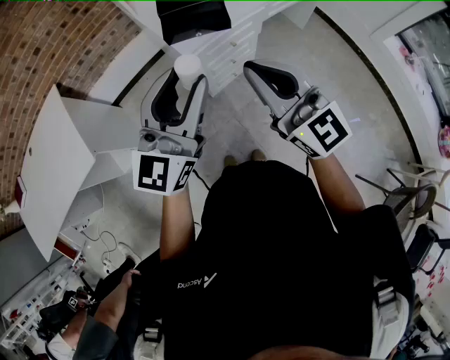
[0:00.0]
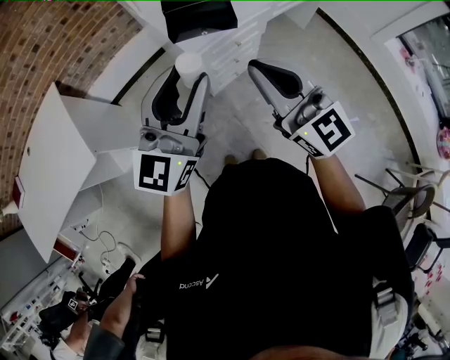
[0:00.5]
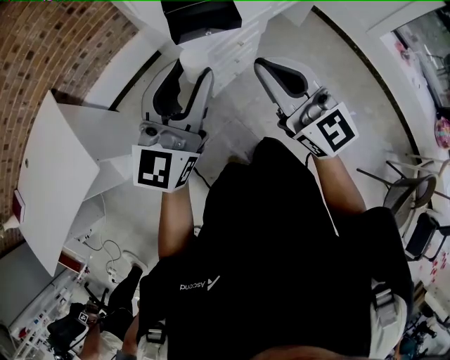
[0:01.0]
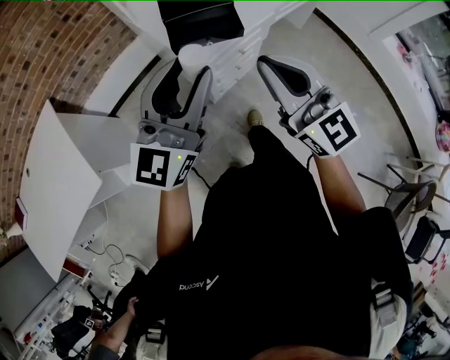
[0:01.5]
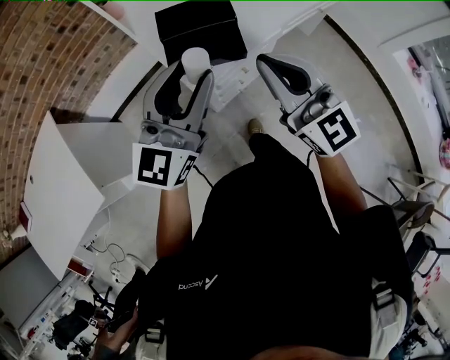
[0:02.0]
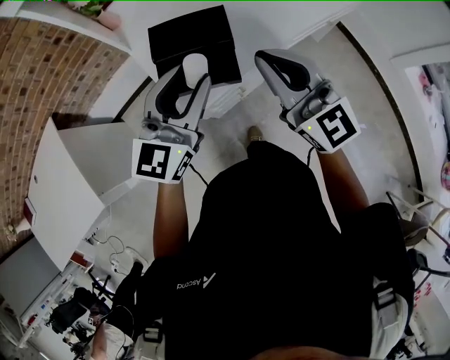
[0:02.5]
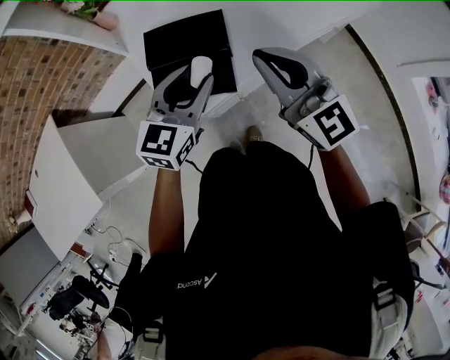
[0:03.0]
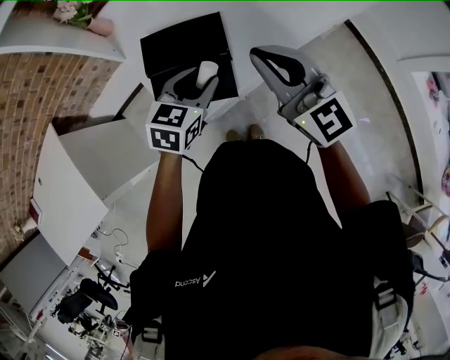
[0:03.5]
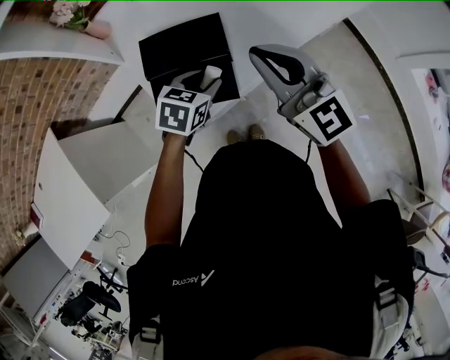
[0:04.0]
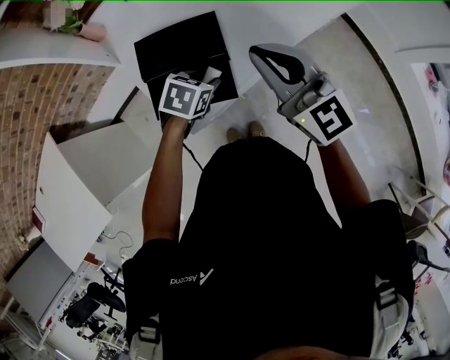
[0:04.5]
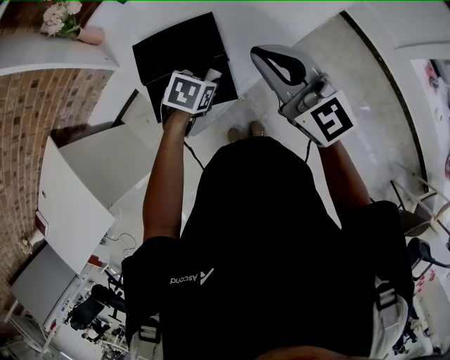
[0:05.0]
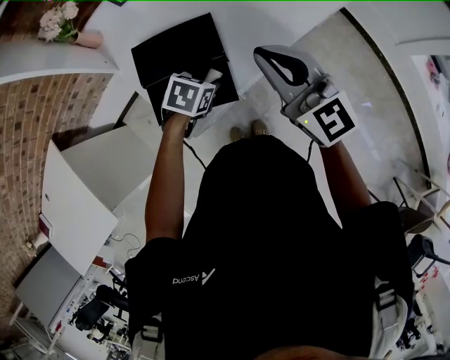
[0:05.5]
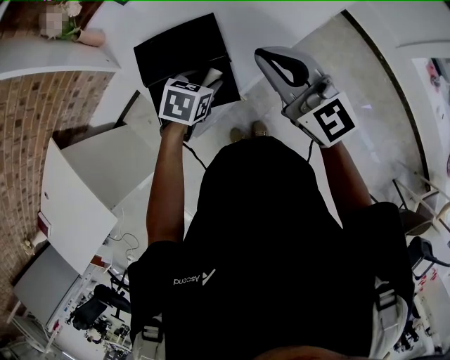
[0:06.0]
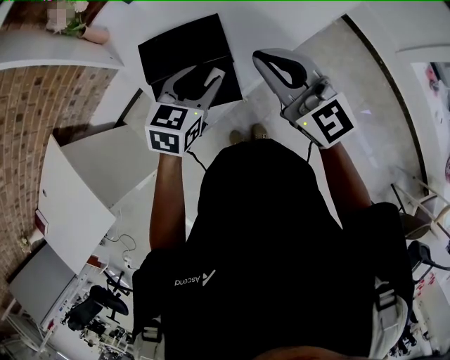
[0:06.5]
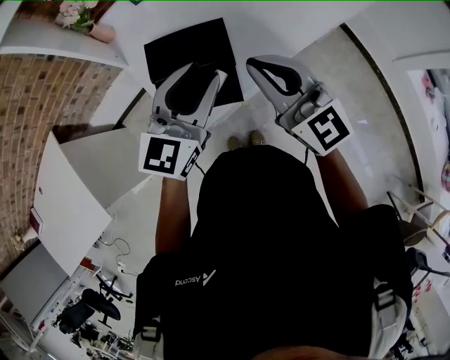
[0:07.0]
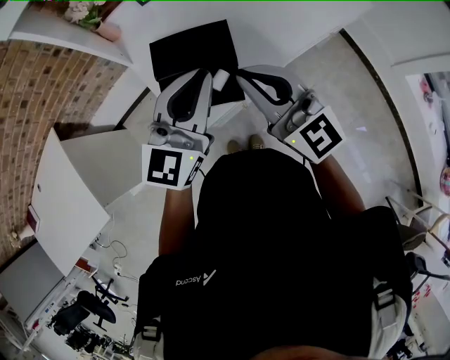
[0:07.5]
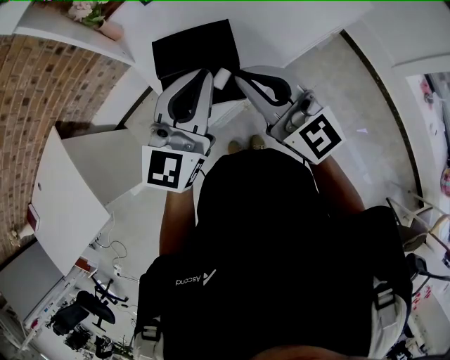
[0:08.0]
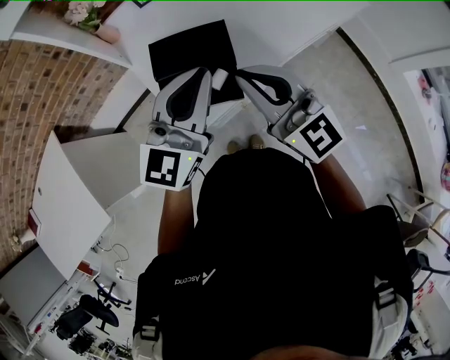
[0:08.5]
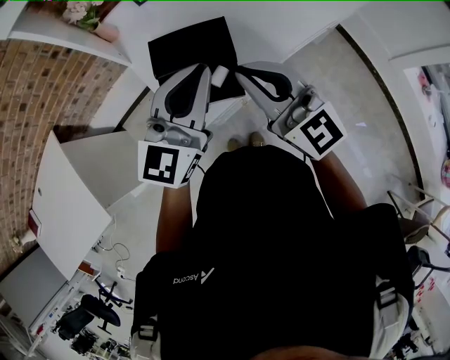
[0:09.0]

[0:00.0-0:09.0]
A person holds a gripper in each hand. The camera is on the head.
0:00.0 to 0:02.0: The grippers both shift forward by about 20 cm.
0:02.0 to 0:04.5: The left gripper travels downward and forward by about 35 cm, and angles its fingers downward, by about 70 degrees. Meanwhile the right gripper is displaced forward by approximately 20 cm.
0:04.5 to 0:07.0: The left gripper shifts approximately 25 cm upward, and tilts its fingers approximately 50 degrees upward.
0:07.0 to 0:09.0: The right gripper changes place by some 5 cm. Meanwhile the left gripper heads upward, covering roughly 5 cm, and closes up.

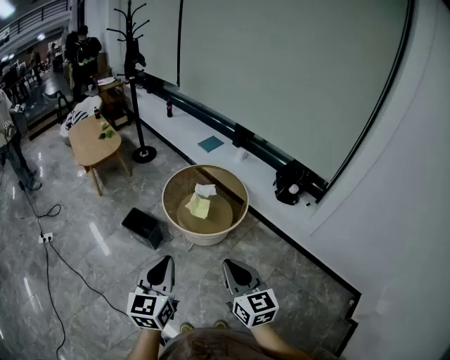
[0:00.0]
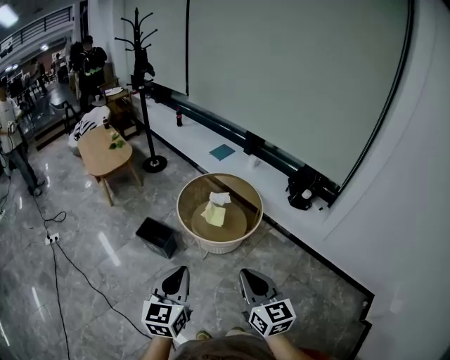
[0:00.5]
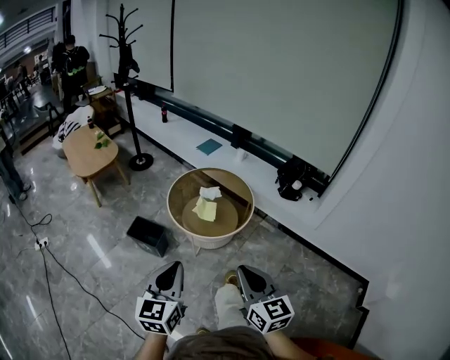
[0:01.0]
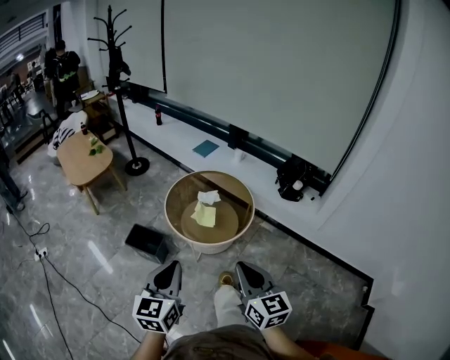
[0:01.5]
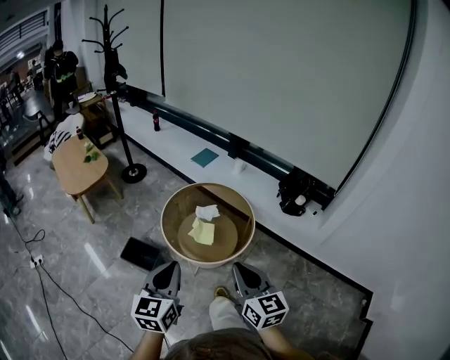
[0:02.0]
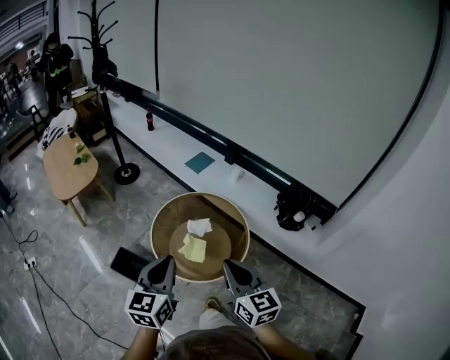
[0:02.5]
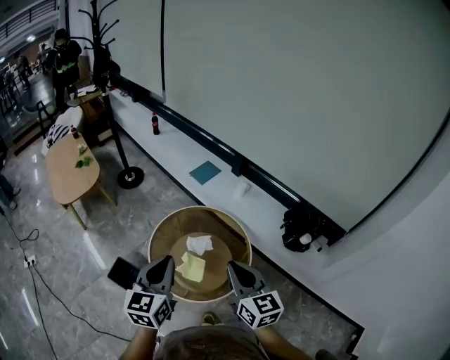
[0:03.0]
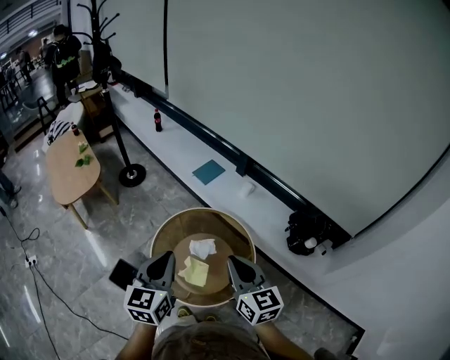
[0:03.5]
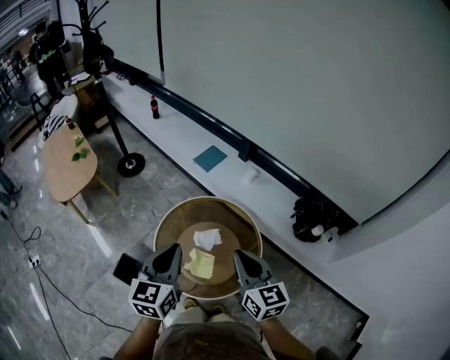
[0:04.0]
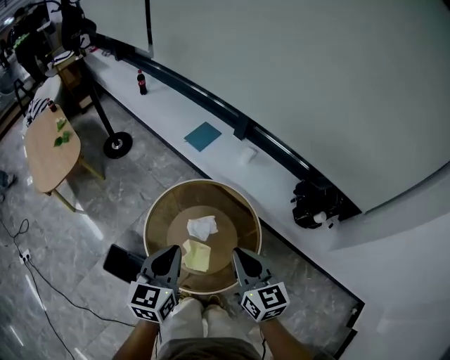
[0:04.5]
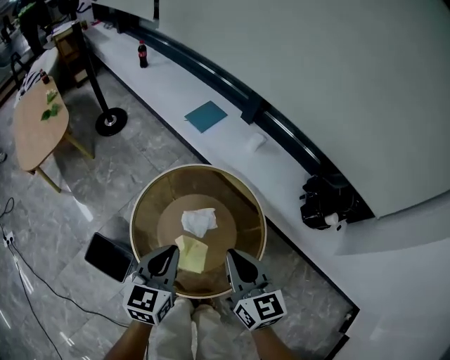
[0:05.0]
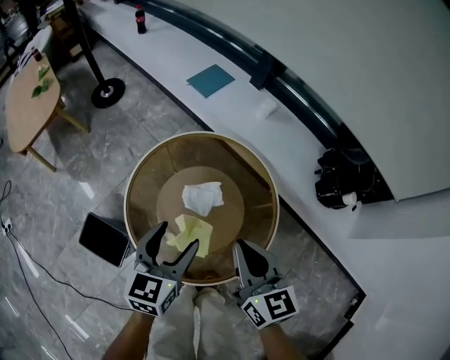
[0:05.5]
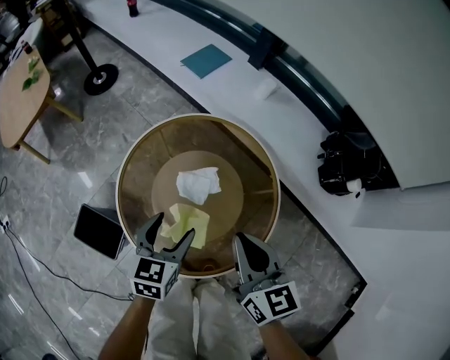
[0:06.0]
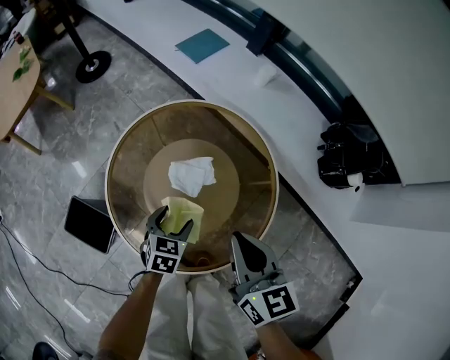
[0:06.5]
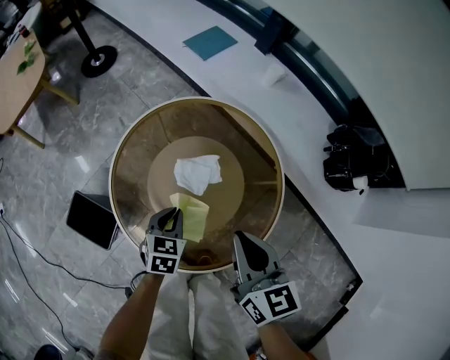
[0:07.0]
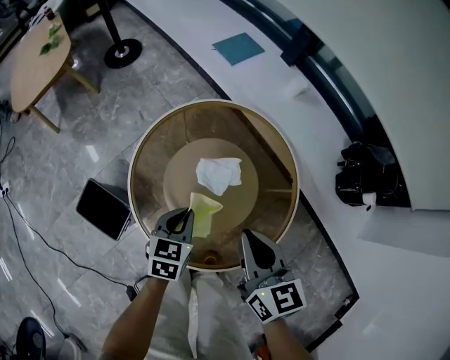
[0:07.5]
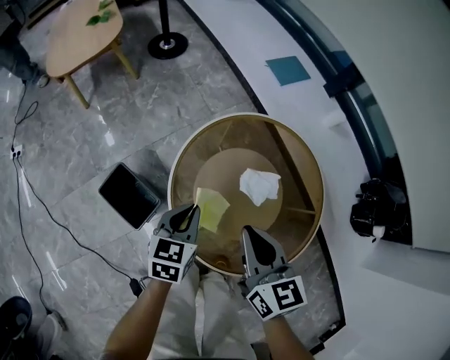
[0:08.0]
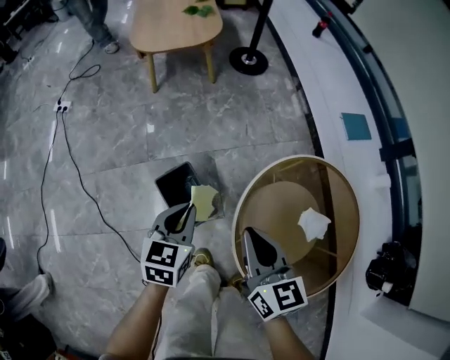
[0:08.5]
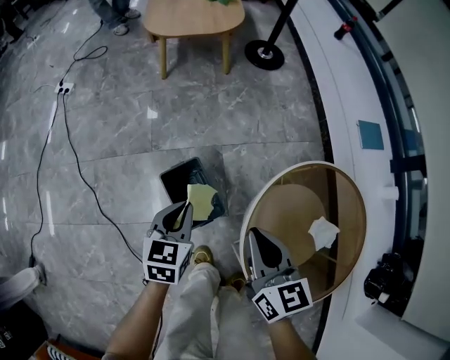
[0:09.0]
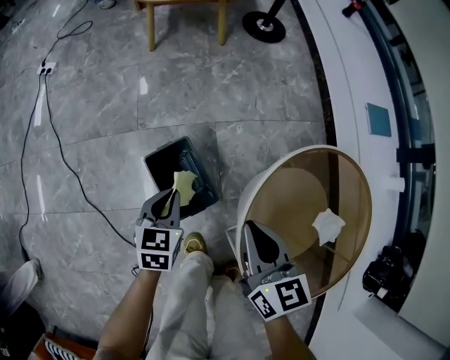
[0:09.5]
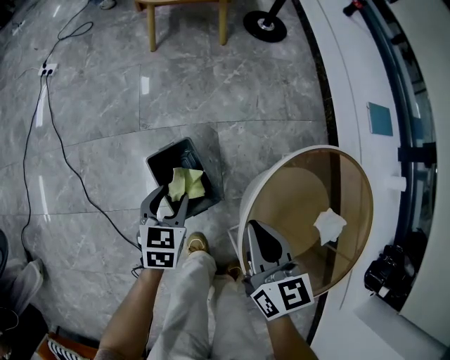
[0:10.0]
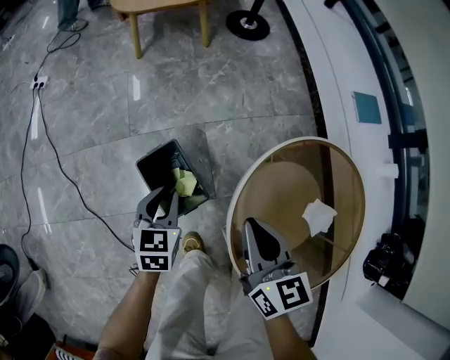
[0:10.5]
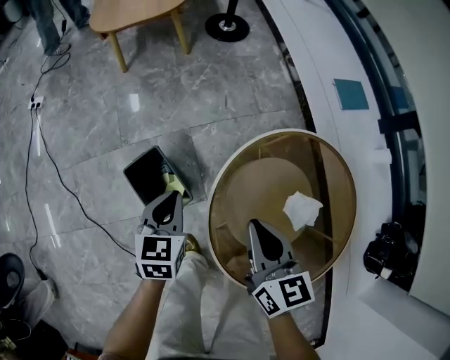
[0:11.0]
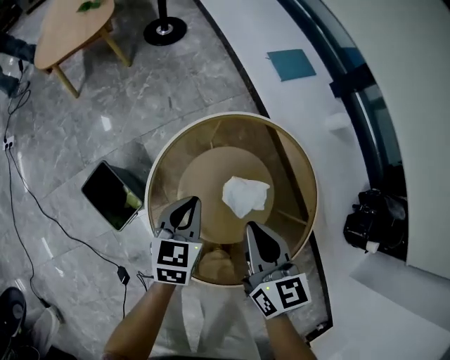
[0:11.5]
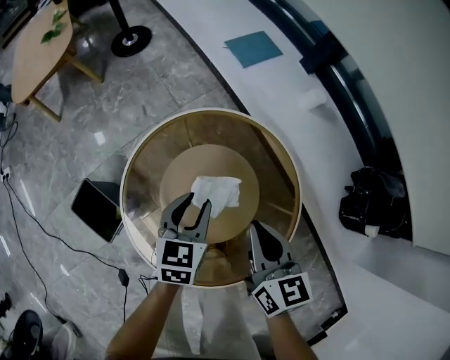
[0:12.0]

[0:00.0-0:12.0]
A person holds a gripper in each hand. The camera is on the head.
0:00.0 to 0:02.0: Both grippers travel together forward, some 15 cm.
0:02.0 to 0:04.0: The grippers both shift forward by roughly 35 cm.
0:04.0 to 0:06.0: Both grippers travel together downward, approximately 30 cm. The left gripper changes its angle by some 20 degrees, and opens up.
0:06.0 to 0:08.0: The grippers both shift to the left by about 15 cm. The left gripper closes up.
0:08.0 to 0:10.0: The left gripper changes place by about 35 cm, turns by some 30 degrees, and opens up. Meanwhile the right gripper moves about 25 cm, and changes its angle by roughly 20 degrees.
0:10.0 to 0:12.0: The two grippers travel together, roughly 40 cm. The right gripper turns by about 30 degrees. The left gripper changes its angle by approximately 30 degrees.

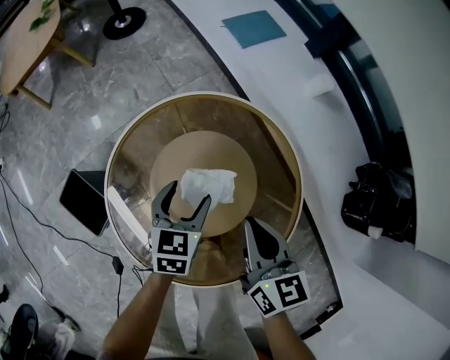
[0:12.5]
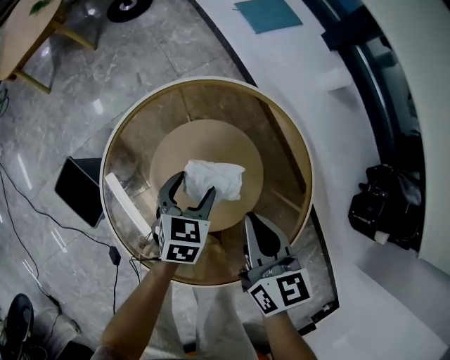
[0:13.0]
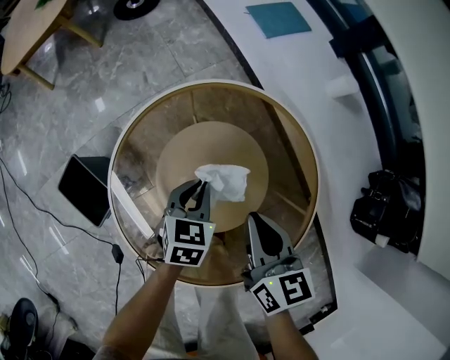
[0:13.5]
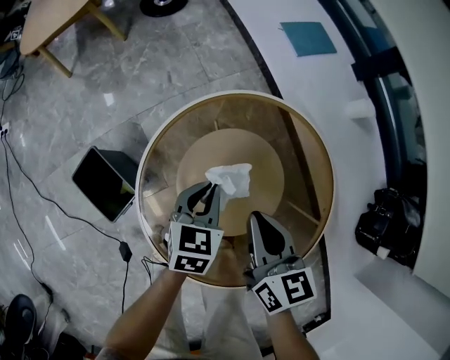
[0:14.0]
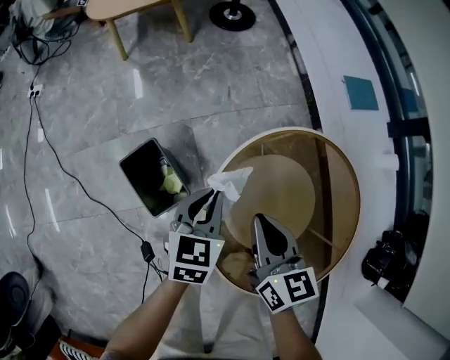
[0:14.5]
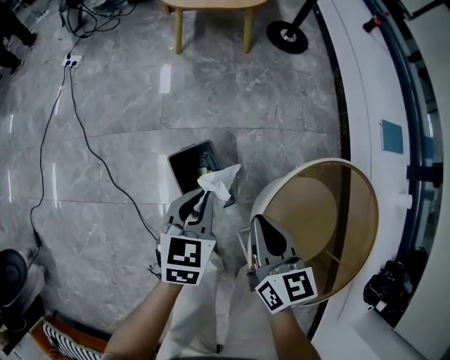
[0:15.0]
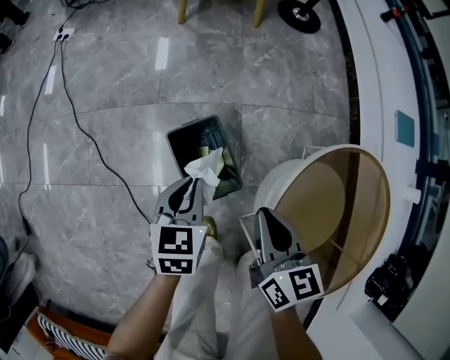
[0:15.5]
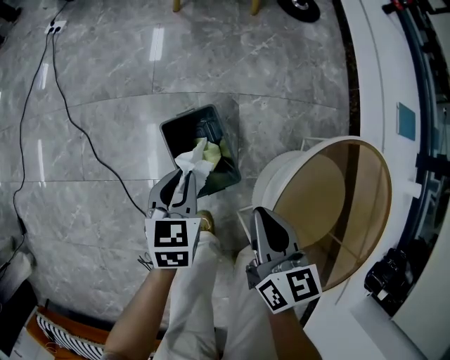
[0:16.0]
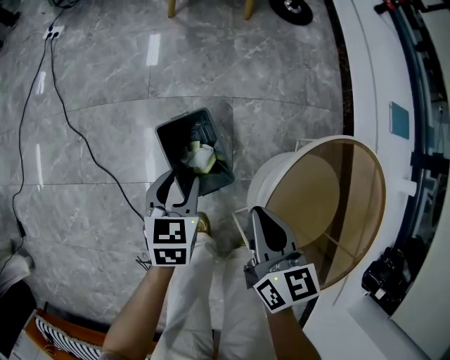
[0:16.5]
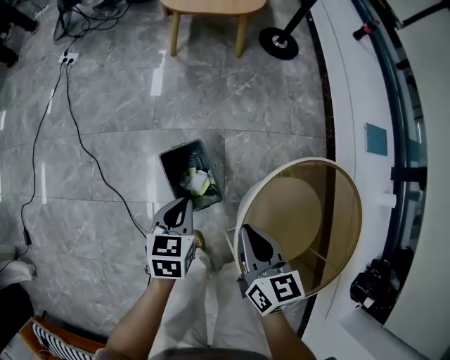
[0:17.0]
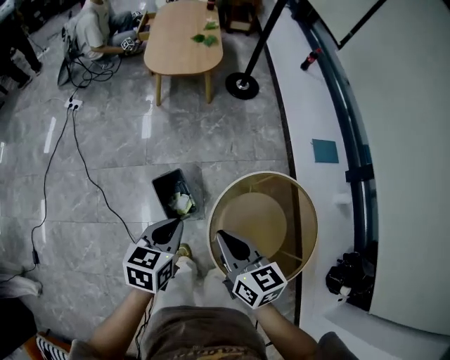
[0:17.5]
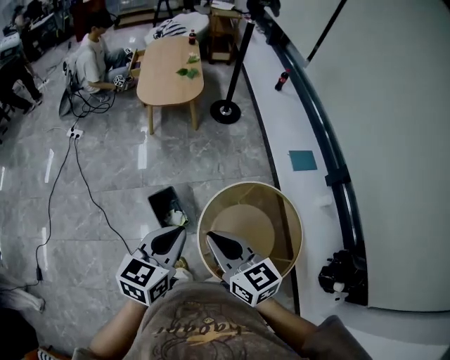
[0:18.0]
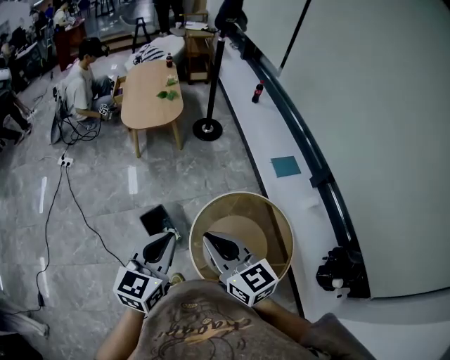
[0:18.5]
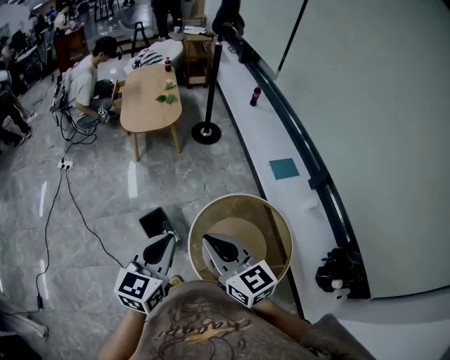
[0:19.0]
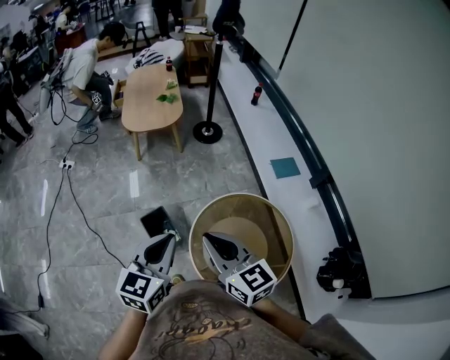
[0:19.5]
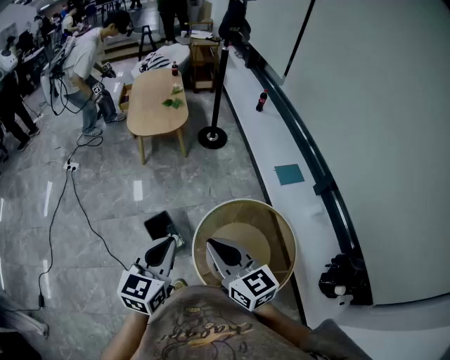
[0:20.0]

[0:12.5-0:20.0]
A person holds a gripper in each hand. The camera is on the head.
0:12.5 to 0:14.5: Both grippers travel together to the left, some 25 cm. The left gripper closes up. Meanwhile the right gripper rotates approximately 20 degrees.
0:14.5 to 0:16.5: The left gripper travels to the left and downward by about 25 cm, swivels roughly 20 degrees, and opens. The right gripper goes roughly 20 cm to the left.
0:16.5 to 0:18.0: The grippers both shift upward by approximately 50 cm. The left gripper swivels approximately 30 degrees, and closes its fingers; the right gripper rotates approximately 30 degrees.
0:18.0 to 0:20.0: The right gripper shifts by approximately 5 cm.
